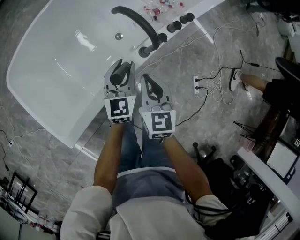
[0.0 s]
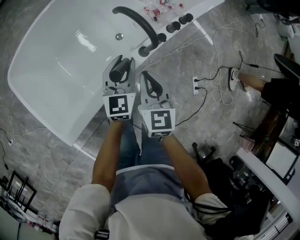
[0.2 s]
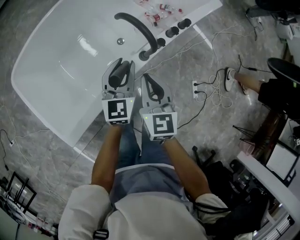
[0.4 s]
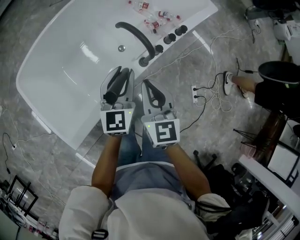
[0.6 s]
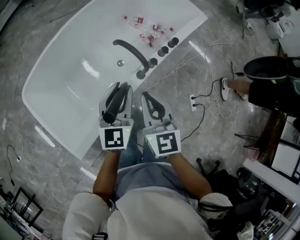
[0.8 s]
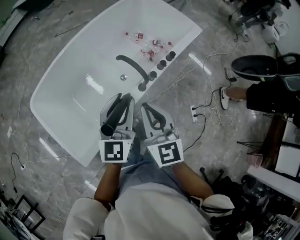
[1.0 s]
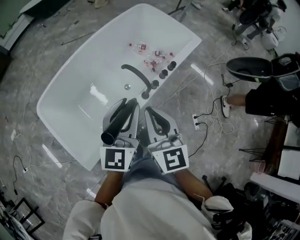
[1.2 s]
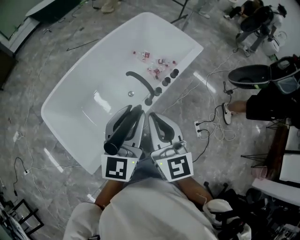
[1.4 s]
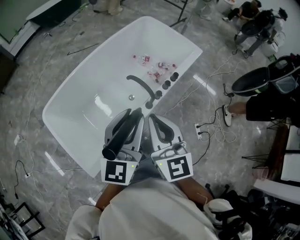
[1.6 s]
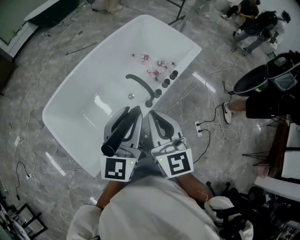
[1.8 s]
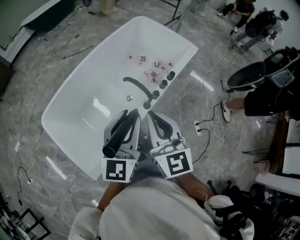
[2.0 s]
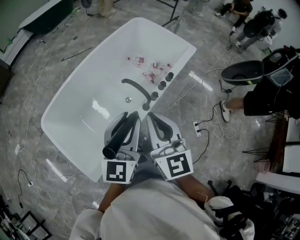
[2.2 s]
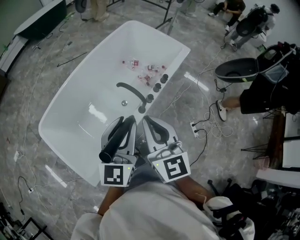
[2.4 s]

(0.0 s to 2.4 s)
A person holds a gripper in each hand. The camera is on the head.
0.0 s - 1.2 s: Both grippers move upward, roughly 40 cm. The right gripper turns by roughly 20 degrees.
1.2 s - 2.4 s: Both grippers move upward, about 5 cm.

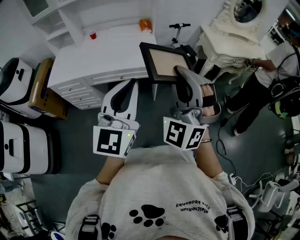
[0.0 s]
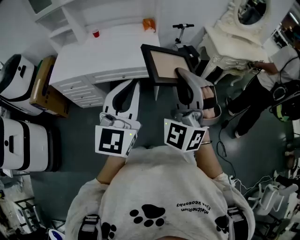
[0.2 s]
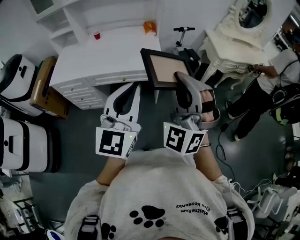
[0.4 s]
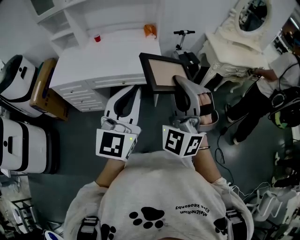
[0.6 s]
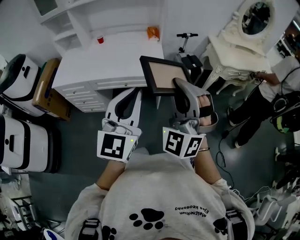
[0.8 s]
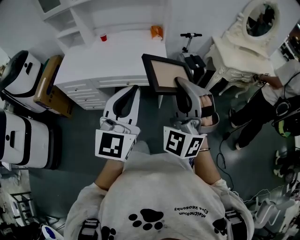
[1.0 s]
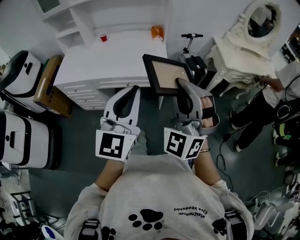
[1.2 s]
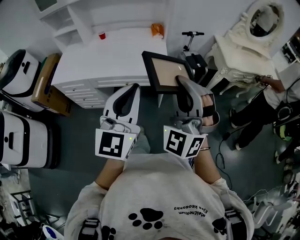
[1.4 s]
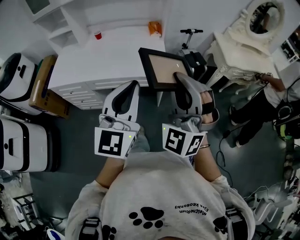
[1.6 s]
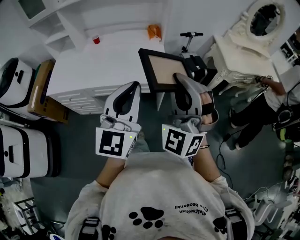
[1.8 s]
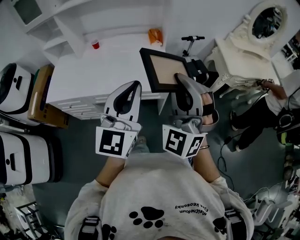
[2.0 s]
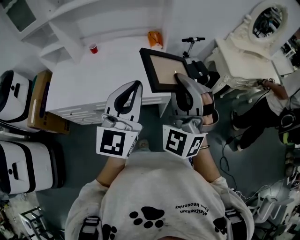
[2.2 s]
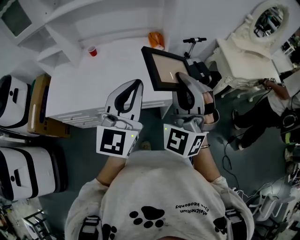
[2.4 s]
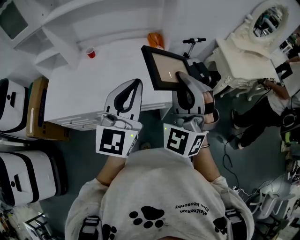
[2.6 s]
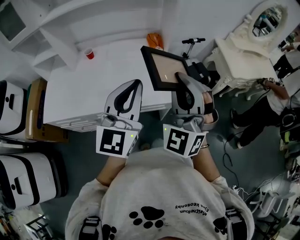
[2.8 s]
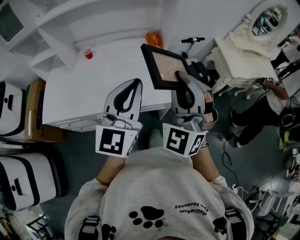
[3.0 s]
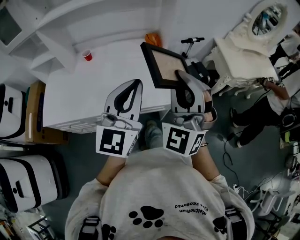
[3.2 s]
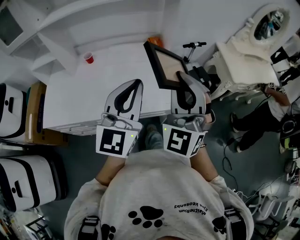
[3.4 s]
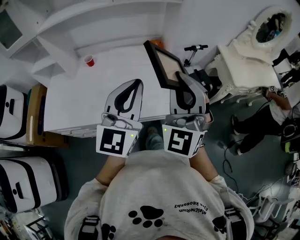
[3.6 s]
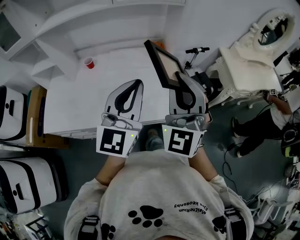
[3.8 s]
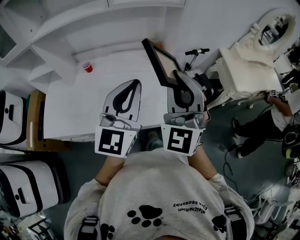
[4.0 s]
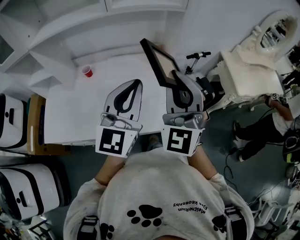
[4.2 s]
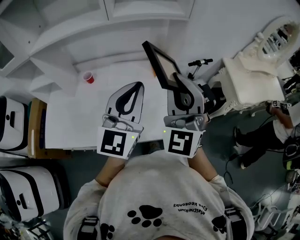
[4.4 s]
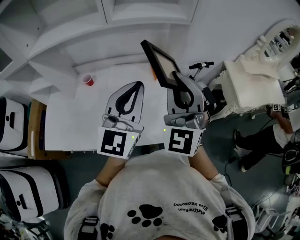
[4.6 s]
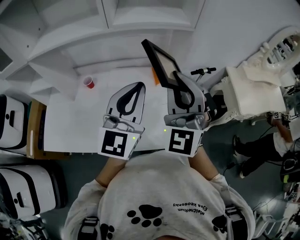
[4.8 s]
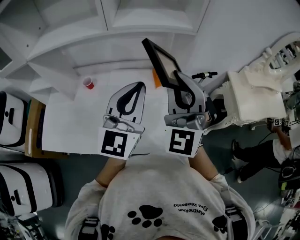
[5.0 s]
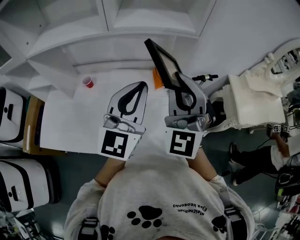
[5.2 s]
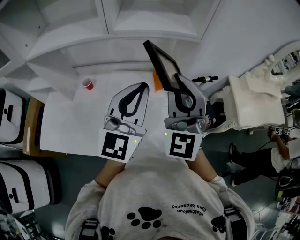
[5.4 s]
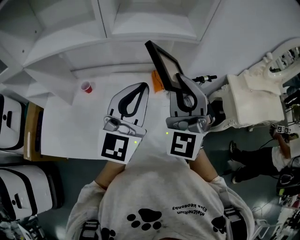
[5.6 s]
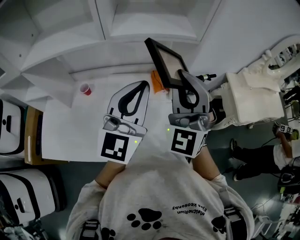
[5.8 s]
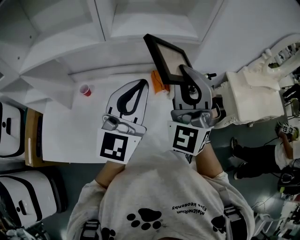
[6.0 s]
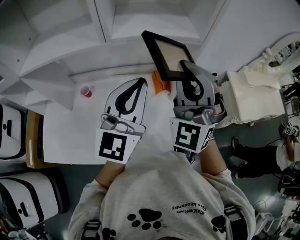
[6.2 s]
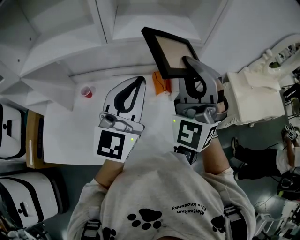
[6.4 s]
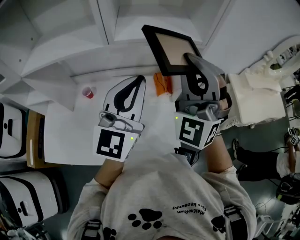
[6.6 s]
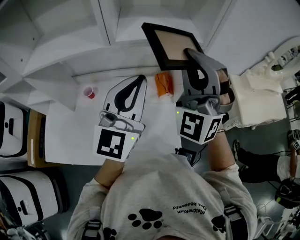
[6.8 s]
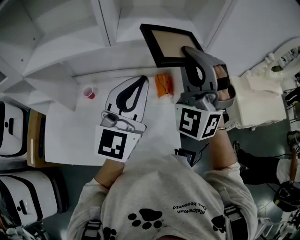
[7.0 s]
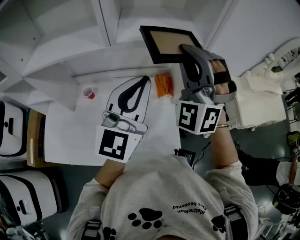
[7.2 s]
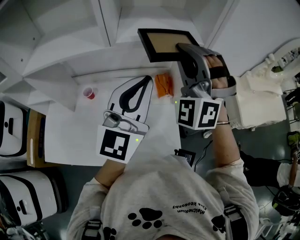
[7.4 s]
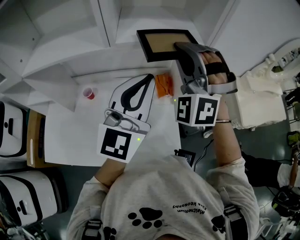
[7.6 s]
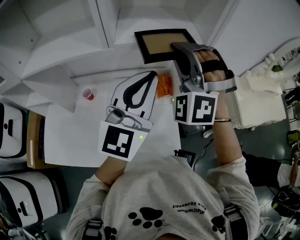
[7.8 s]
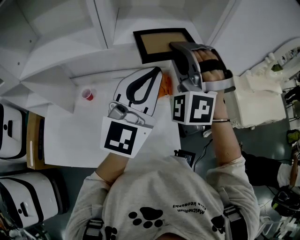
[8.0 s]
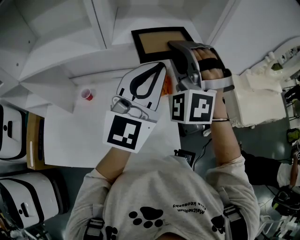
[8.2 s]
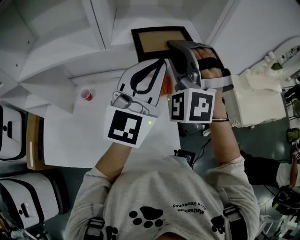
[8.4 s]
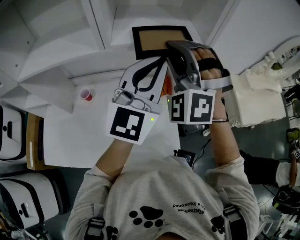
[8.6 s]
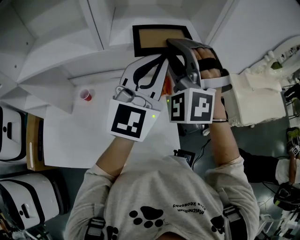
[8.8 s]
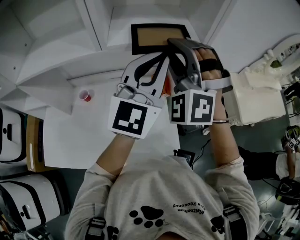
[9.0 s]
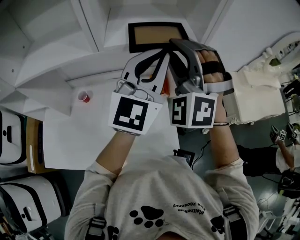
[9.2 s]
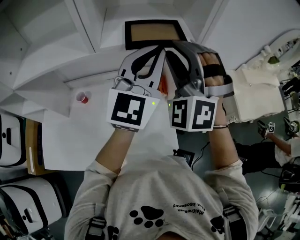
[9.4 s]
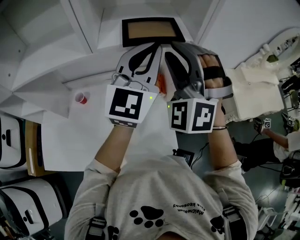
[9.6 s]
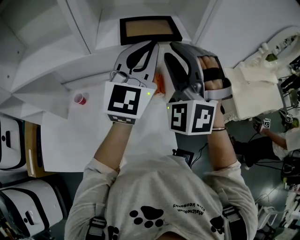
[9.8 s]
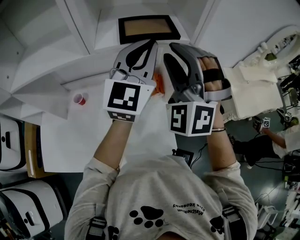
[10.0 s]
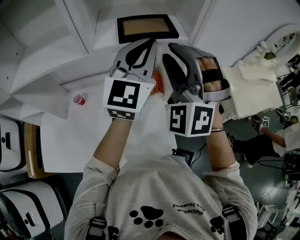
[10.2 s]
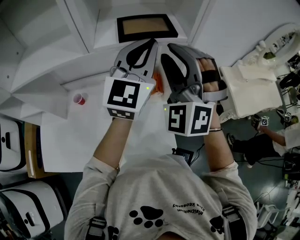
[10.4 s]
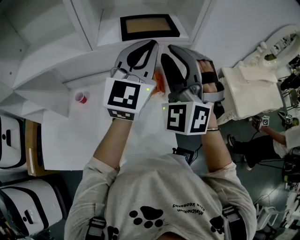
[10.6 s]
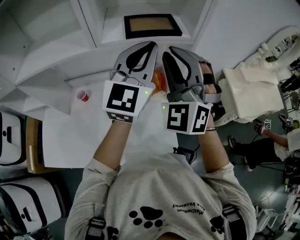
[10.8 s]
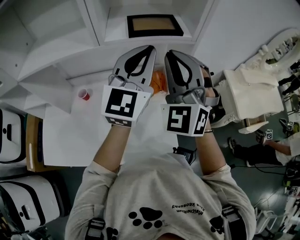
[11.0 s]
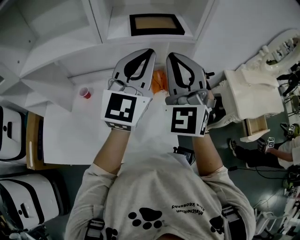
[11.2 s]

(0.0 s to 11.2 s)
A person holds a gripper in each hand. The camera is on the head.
0.0 s - 1.6 s: Both grippers travel together forward, approximately 10 cm.
1.6 s - 3.2 s: Both grippers move forward and to the left, about 25 cm.
3.2 s - 4.8 s: The grippers both shift forward by roughly 25 cm.
4.8 s - 6.4 s: The left gripper is displaced forward by about 10 cm, while the right gripper shifts some 10 cm forward and upward.
6.4 s - 8.0 s: The left gripper changes place by approximately 5 cm, while the right gripper goes some 10 cm forward, and rotates about 30 degrees.
8.0 s - 9.6 s: The left gripper goes roughly 10 cm forward. Meanwhile the right gripper opens.
9.6 s - 11.2 s: The grippers both shift backward by roughly 5 cm. The right gripper rotates some 30 degrees, and closes.

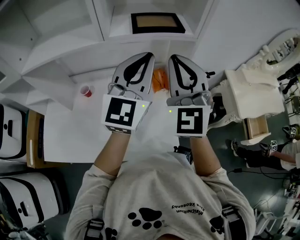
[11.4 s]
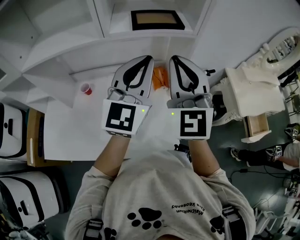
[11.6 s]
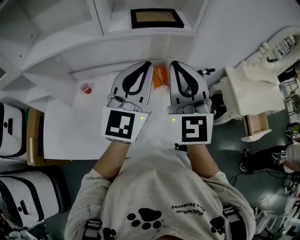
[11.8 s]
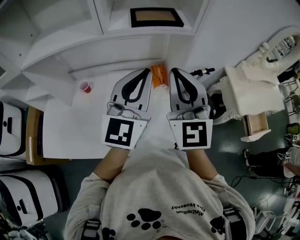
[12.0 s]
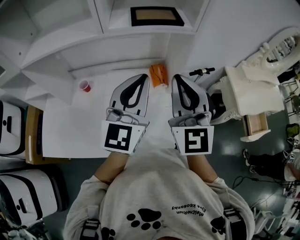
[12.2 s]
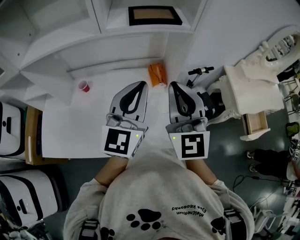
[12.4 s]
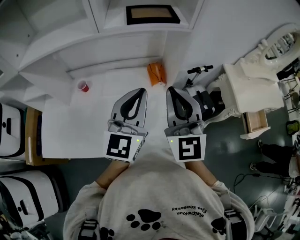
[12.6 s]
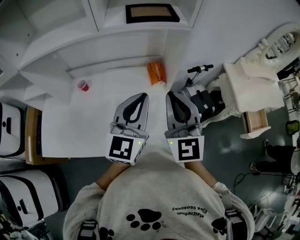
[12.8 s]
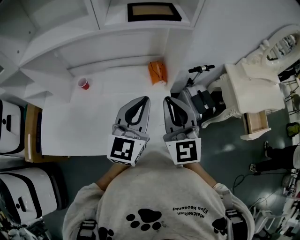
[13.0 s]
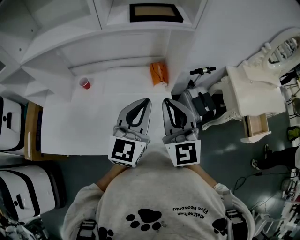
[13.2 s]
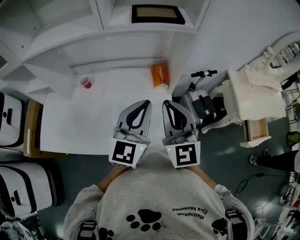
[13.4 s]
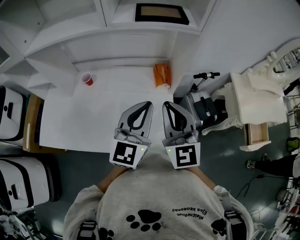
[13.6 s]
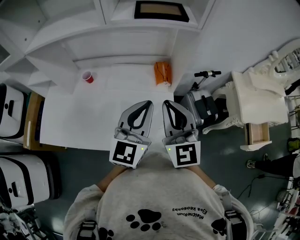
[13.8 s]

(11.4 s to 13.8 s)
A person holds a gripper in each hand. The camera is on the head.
11.4 s - 12.6 s: The left gripper heads downward and backward, covering roughly 15 cm. Meanwhile the right gripper heads backward and downward, covering approximately 10 cm, and swivels some 20 degrees.
12.6 s - 13.8 s: The right gripper travels downward by about 5 cm. Meanwhile the left gripper ends up some 5 cm from where it was.

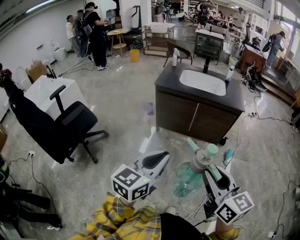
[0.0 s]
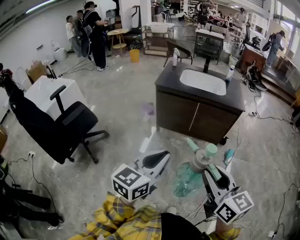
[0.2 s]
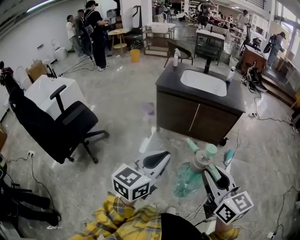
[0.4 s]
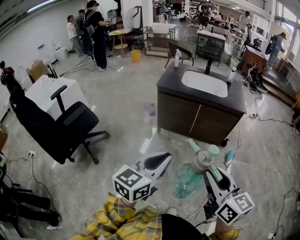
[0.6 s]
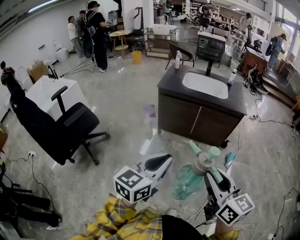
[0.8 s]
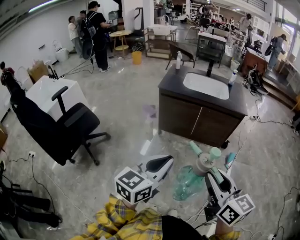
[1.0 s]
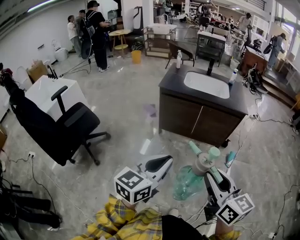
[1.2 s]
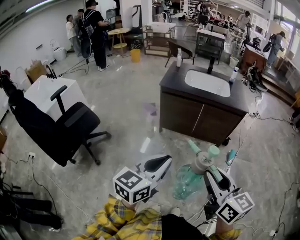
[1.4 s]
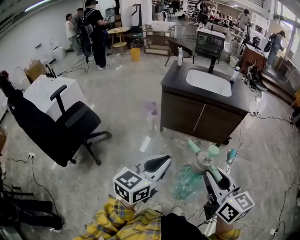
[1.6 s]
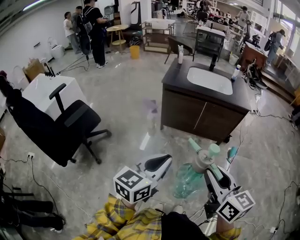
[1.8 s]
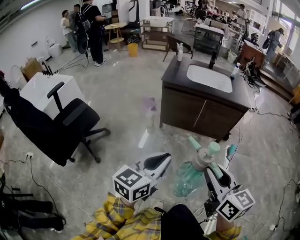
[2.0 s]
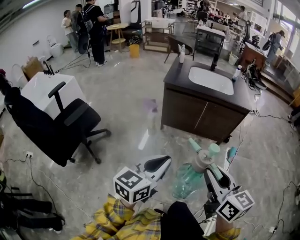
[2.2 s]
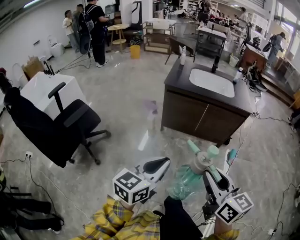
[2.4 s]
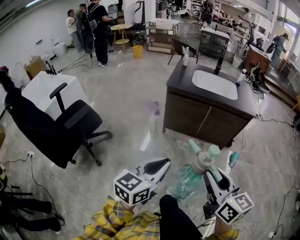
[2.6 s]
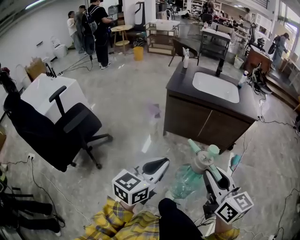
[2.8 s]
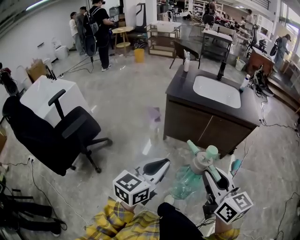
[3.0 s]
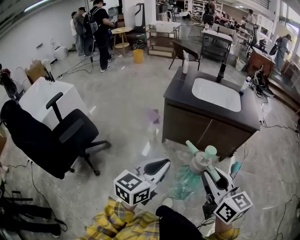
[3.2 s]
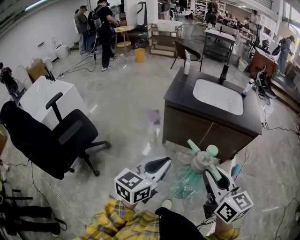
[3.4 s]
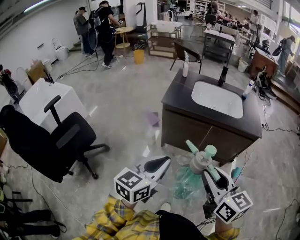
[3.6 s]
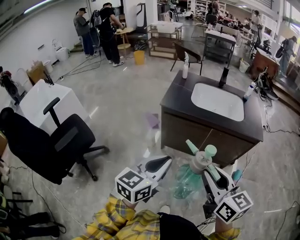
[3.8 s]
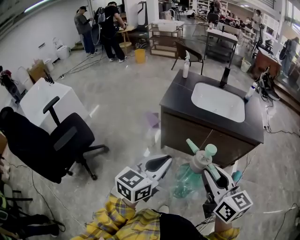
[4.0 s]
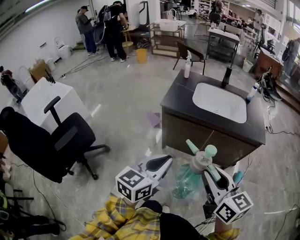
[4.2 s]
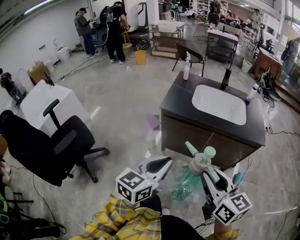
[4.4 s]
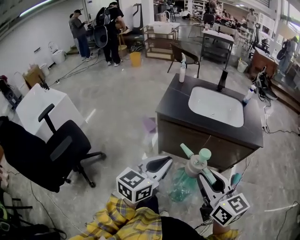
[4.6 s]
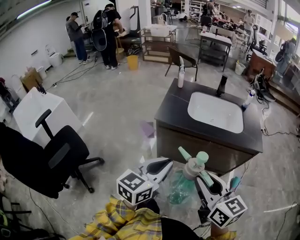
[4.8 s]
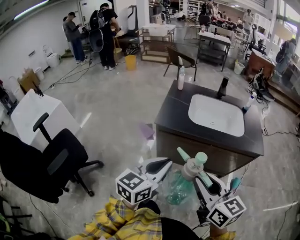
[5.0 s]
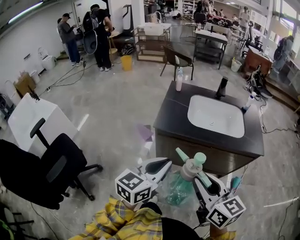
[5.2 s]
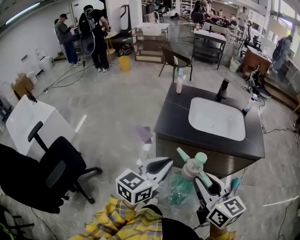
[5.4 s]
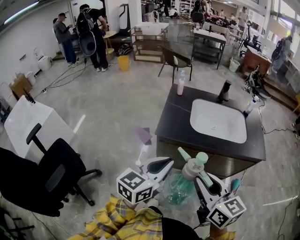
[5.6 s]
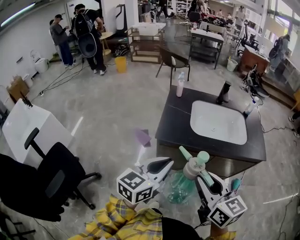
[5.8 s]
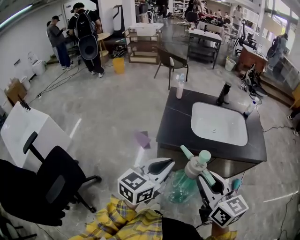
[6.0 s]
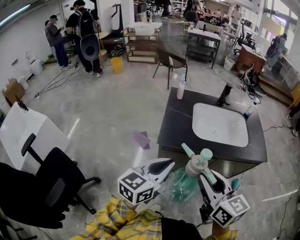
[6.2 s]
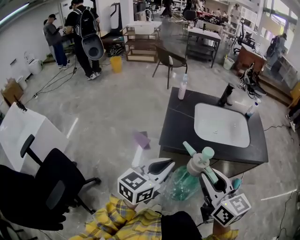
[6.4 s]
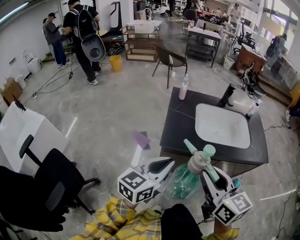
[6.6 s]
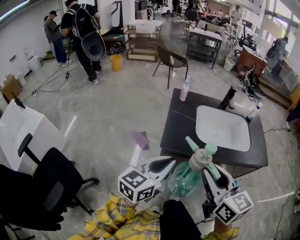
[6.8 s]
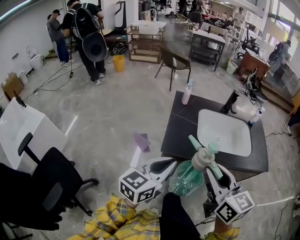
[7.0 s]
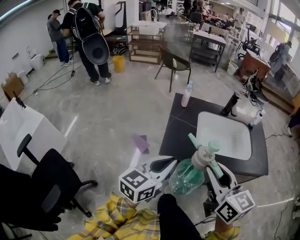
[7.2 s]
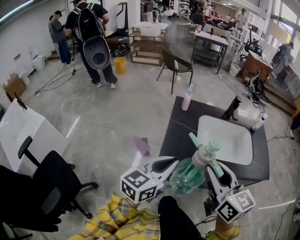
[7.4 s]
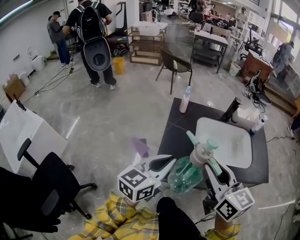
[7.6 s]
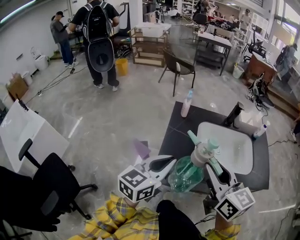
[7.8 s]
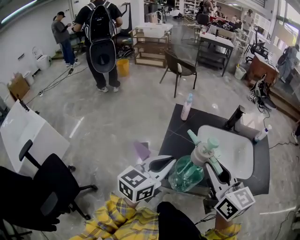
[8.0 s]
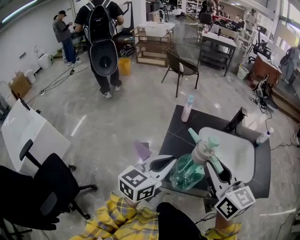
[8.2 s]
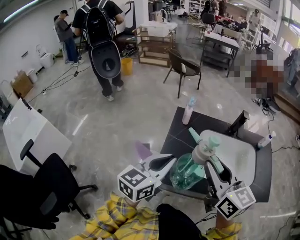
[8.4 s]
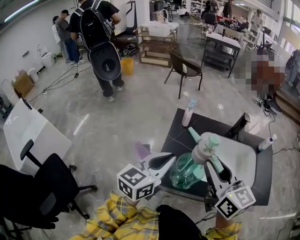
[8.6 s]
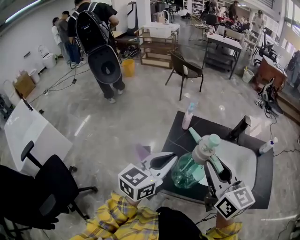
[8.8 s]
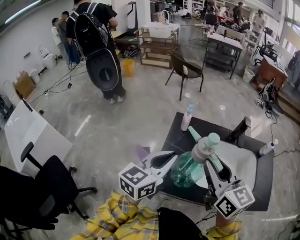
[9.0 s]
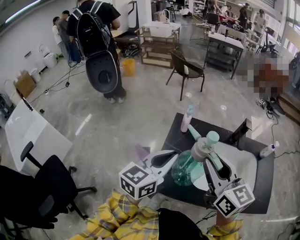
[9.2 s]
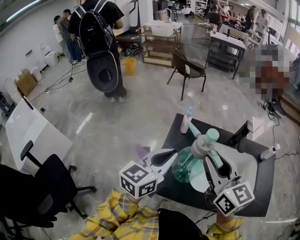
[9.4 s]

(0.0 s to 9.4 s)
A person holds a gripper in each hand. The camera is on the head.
0.0 s - 1.6 s: Both grippers move to the left, about 5 cm.
1.6 s - 3.2 s: Both grippers move forward, roughly 20 cm.
3.2 s - 4.8 s: Both grippers travel together forward, roughly 20 cm.
4.8 s - 6.2 s: The two grippers go about 20 cm forward and to the left.
6.2 s - 7.8 s: The two grippers go about 20 cm forward.
7.8 s - 9.4 s: The grippers both shift forward by about 15 cm.
